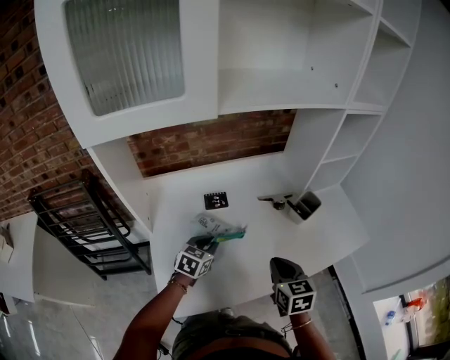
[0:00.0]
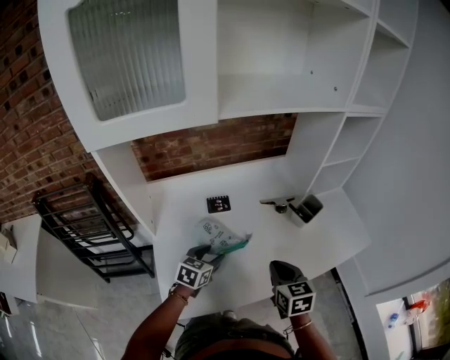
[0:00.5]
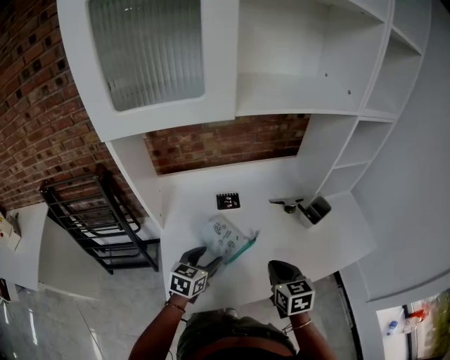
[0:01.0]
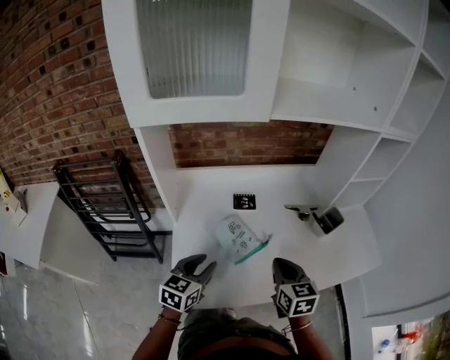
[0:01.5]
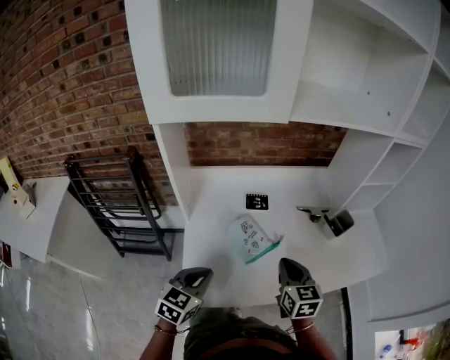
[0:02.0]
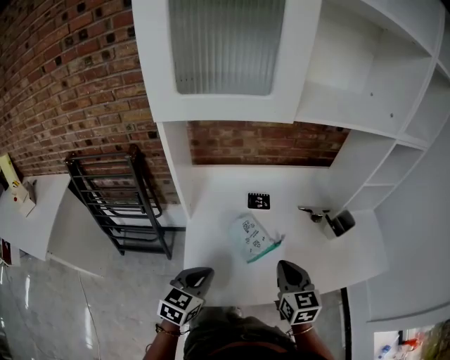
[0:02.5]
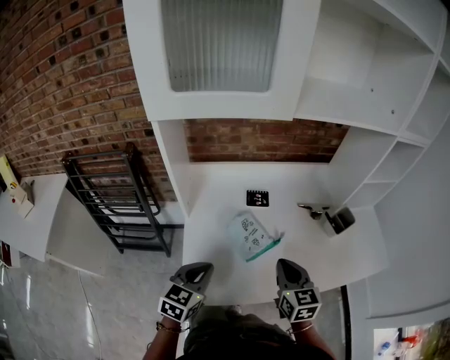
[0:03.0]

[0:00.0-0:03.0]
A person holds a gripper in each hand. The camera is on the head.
0:00.0 to 0:01.5: The right gripper shifts some 5 cm to the left, while the left gripper goes some 15 cm backward, upward and to the left.

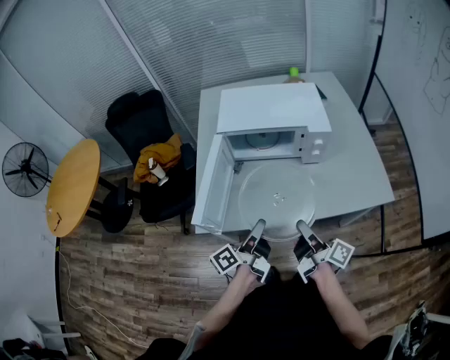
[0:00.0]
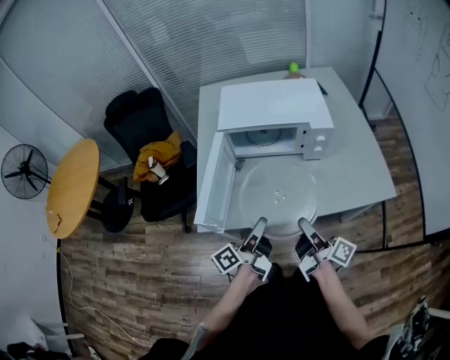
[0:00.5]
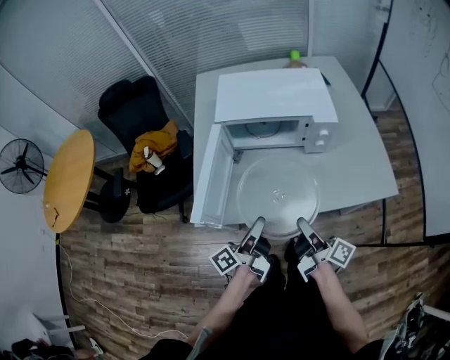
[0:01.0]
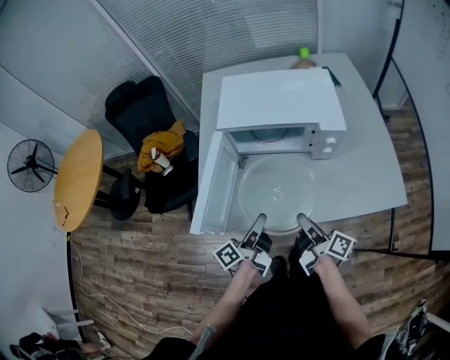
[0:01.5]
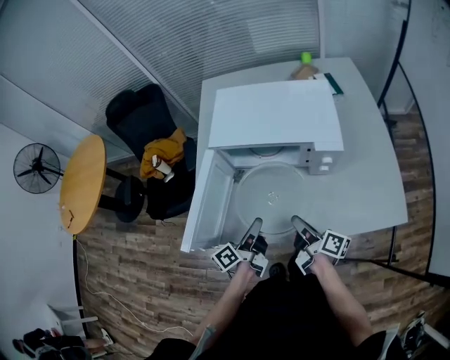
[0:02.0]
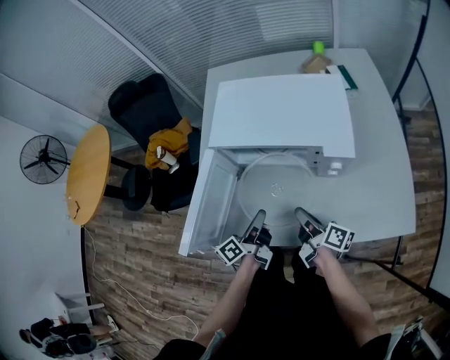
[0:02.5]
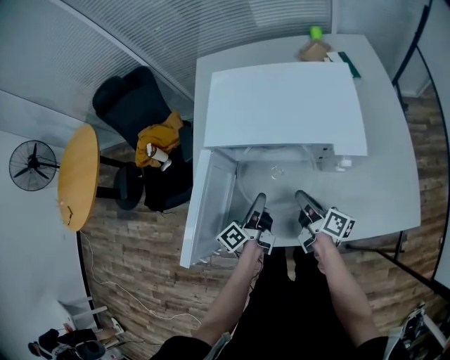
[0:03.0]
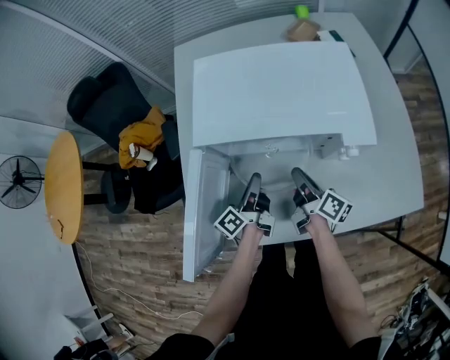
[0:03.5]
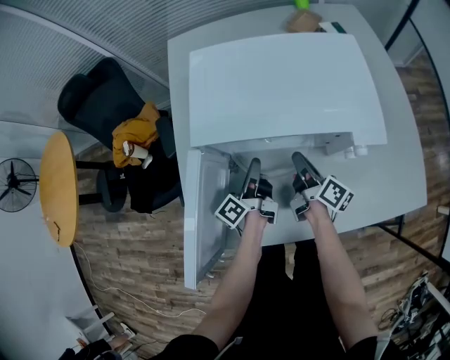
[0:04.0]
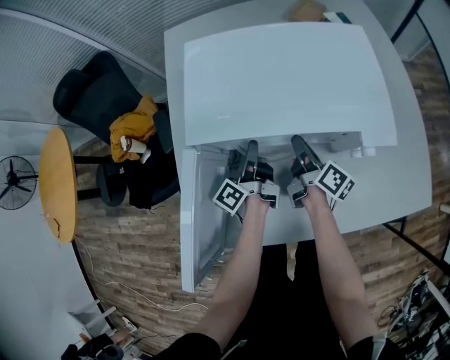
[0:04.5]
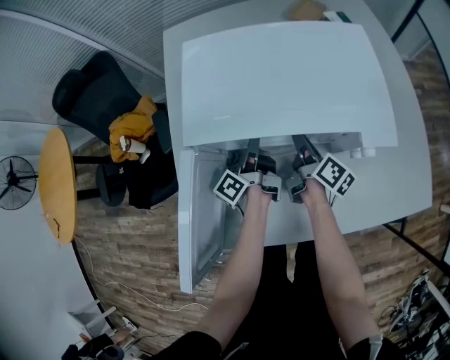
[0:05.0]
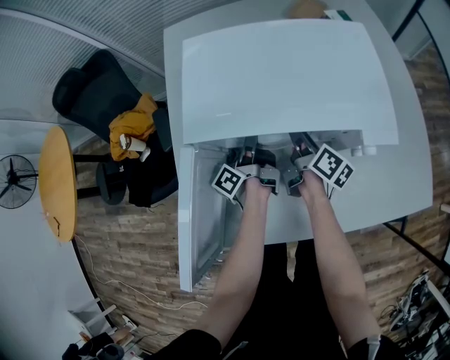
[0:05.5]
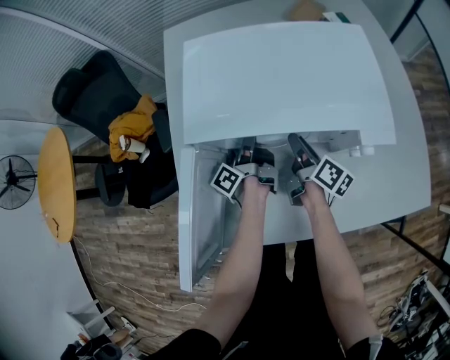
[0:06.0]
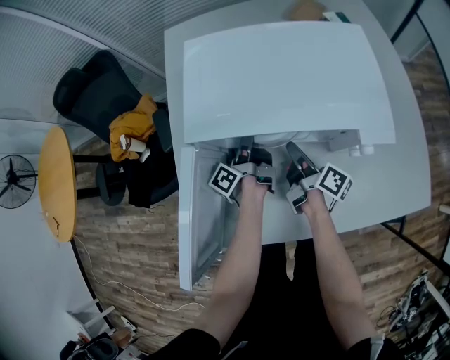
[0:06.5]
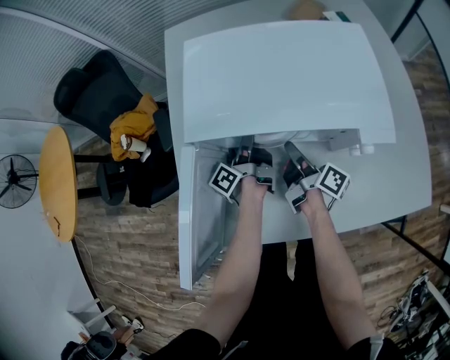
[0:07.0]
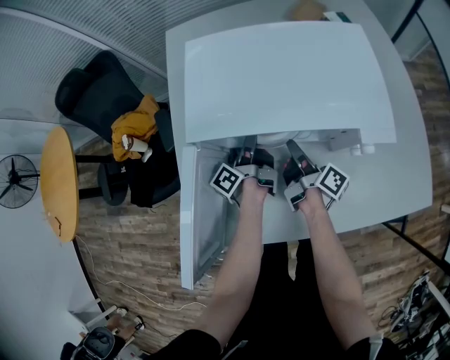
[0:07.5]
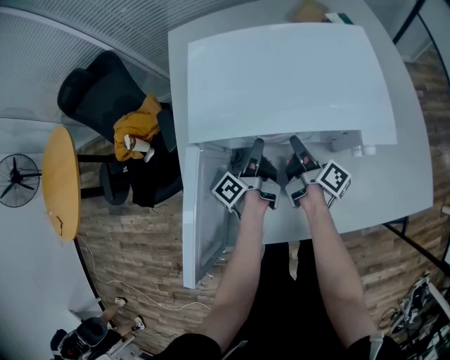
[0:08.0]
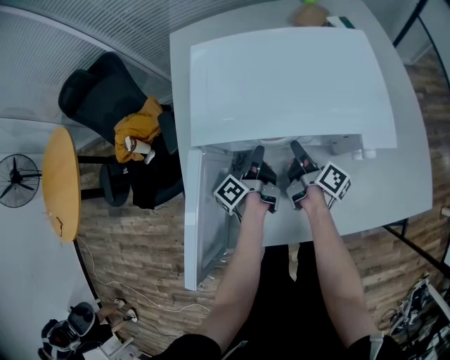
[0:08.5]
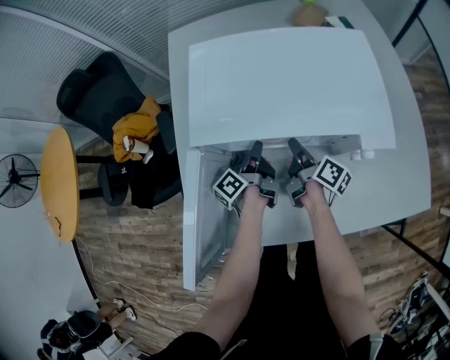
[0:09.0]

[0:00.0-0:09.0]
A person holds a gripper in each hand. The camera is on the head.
0:00.0 to 0:02.0: The right gripper moves approximately 15 cm.
0:02.0 to 0:04.5: The right gripper changes place by approximately 25 cm, and changes its angle by approximately 20 degrees.

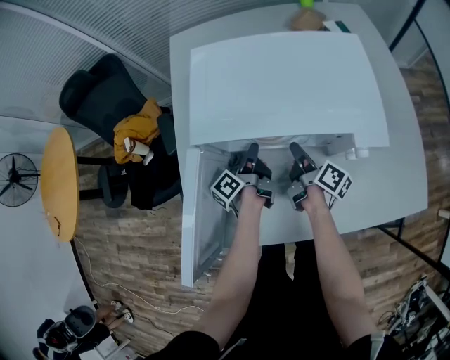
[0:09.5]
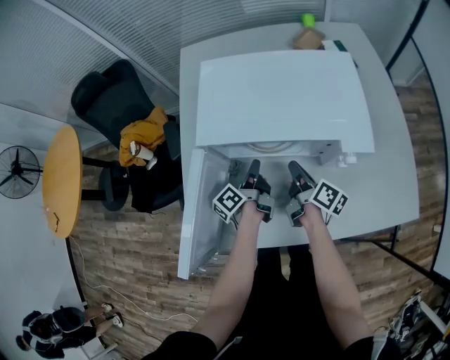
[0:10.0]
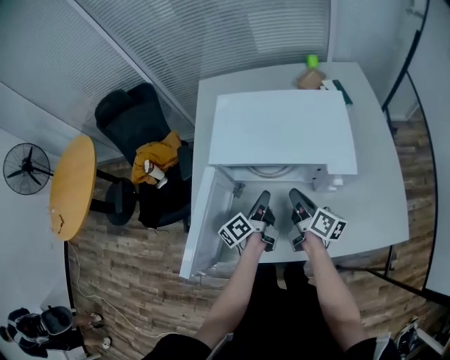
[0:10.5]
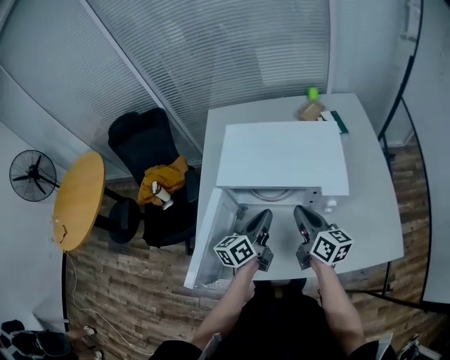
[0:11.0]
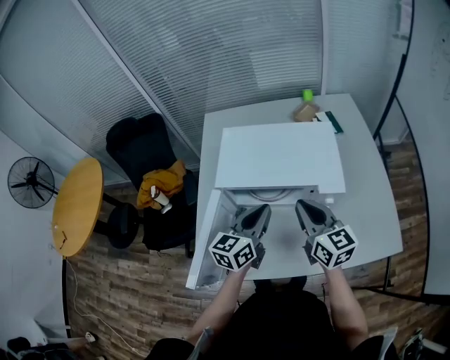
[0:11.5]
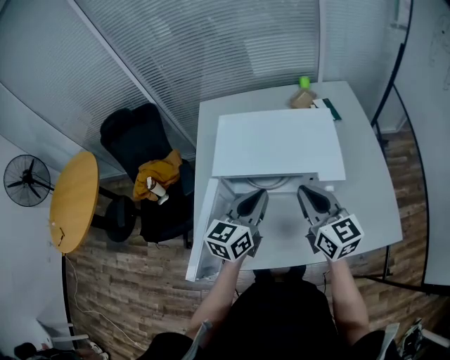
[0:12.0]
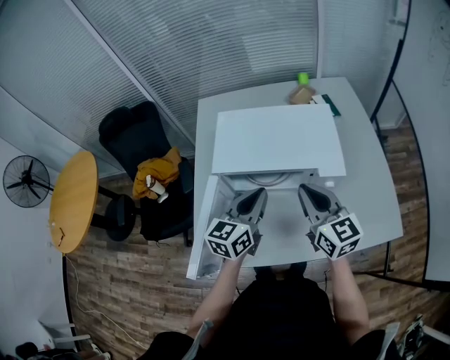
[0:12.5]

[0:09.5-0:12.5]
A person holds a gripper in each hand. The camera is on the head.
0:09.5 to 0:11.0: The right gripper heads upward, covering approximately 20 cm, and rotates some 40 degrees.
0:11.0 to 0:12.5: The right gripper travels upward by about 10 cm, and rotates approximately 30 degrees.

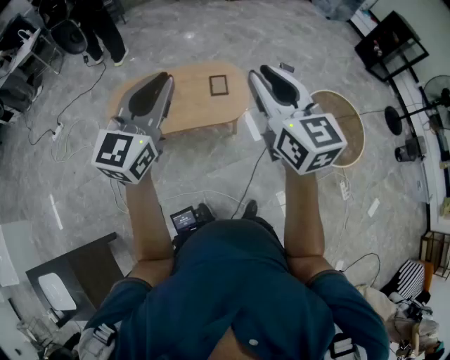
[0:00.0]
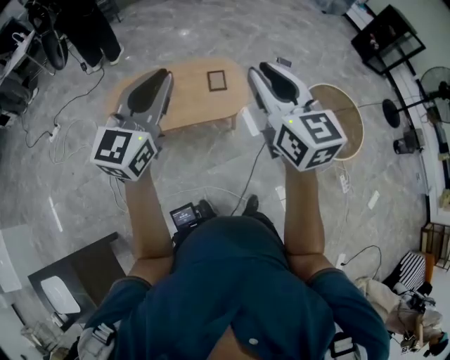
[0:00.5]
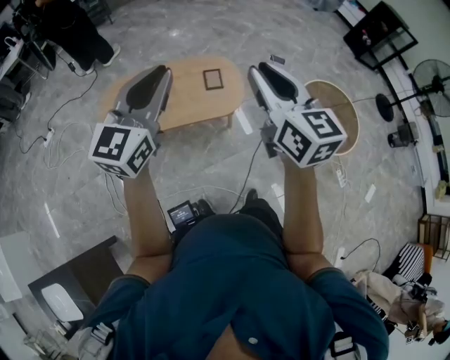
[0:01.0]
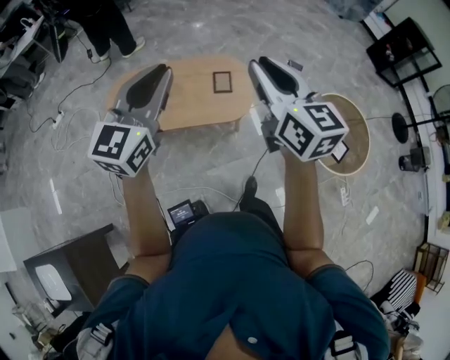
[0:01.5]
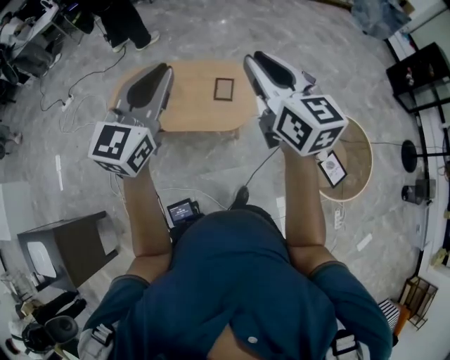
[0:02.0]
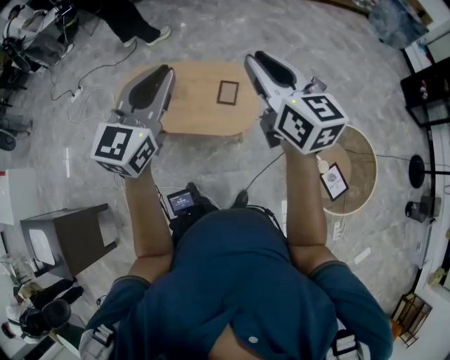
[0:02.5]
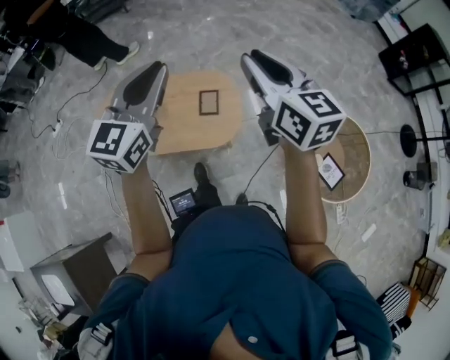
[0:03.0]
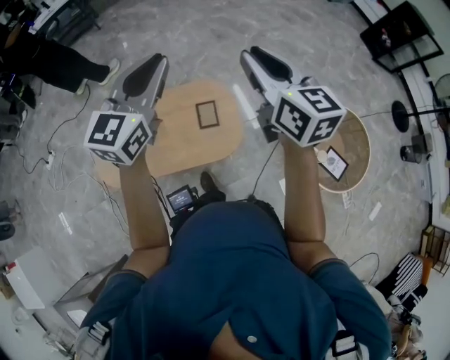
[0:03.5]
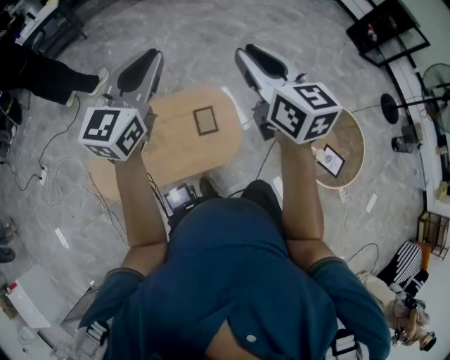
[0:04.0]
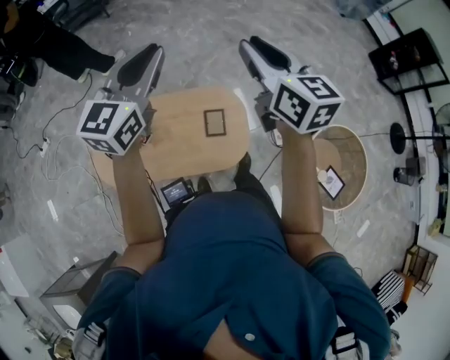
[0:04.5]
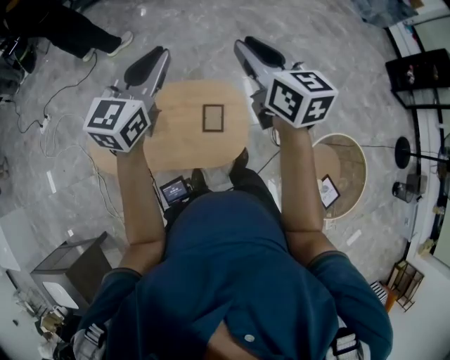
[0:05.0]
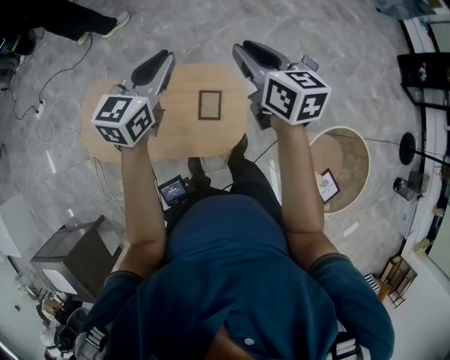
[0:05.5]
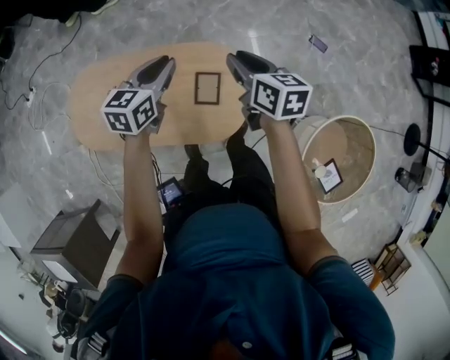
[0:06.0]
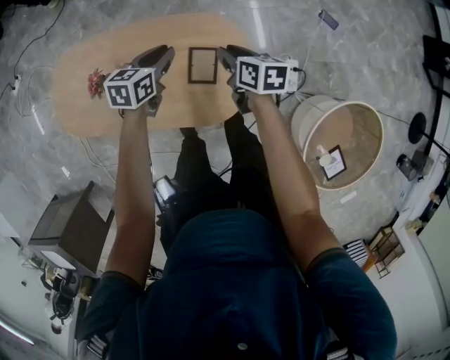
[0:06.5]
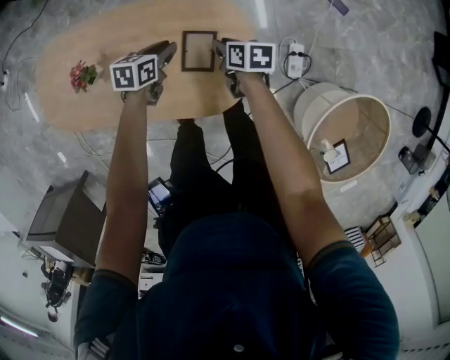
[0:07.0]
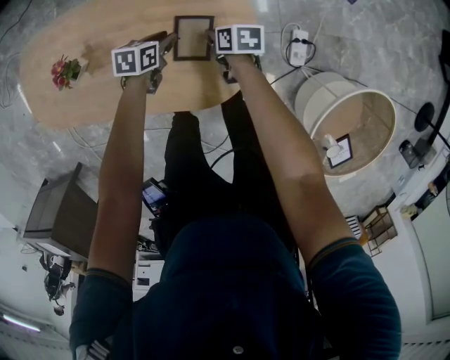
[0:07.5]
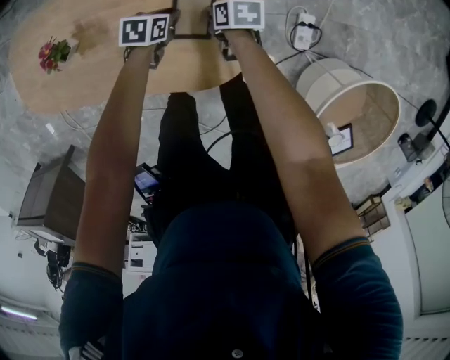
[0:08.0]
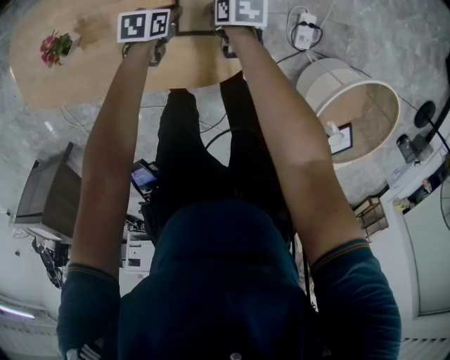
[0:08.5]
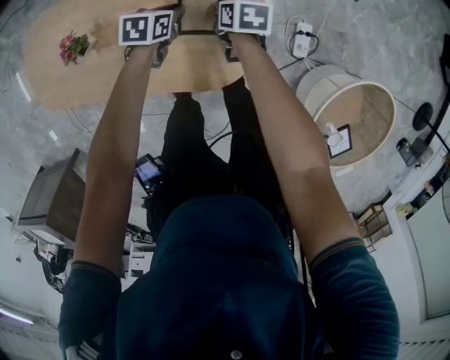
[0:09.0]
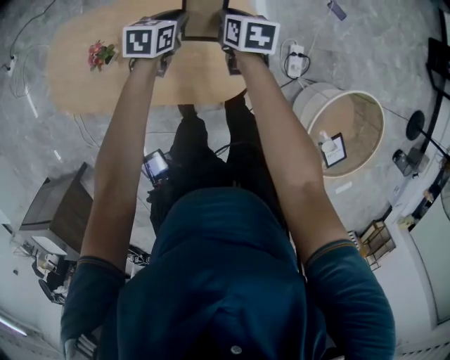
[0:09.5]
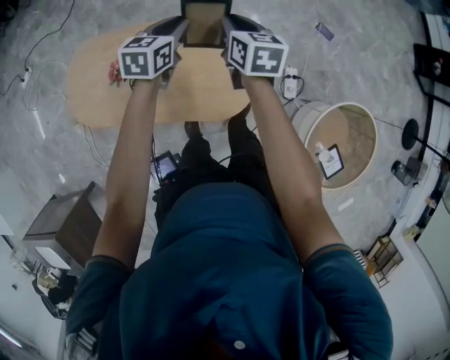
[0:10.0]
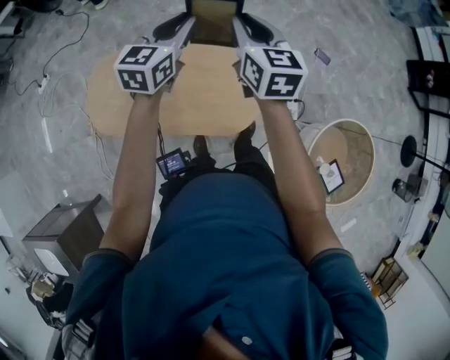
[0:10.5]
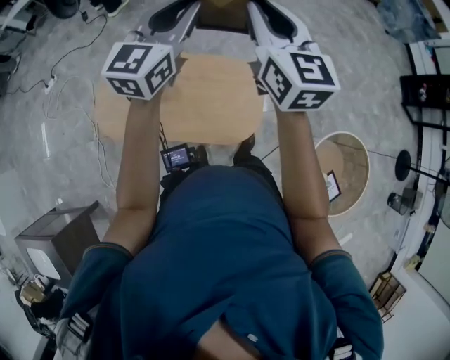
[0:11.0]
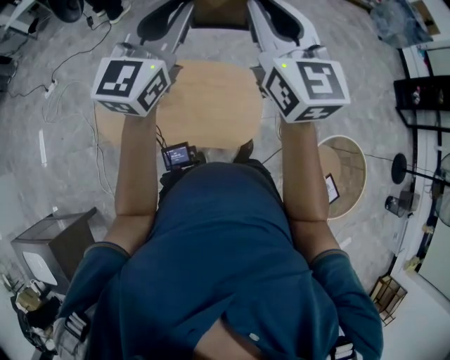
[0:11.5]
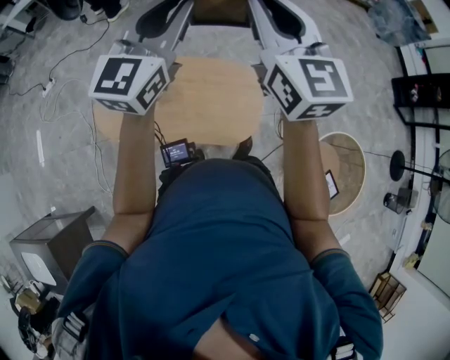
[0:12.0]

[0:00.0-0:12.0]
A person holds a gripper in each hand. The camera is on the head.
0:00.0 to 0:02.0: Both grippers travel together forward and to the right, roughly 20 cm.
0:02.0 to 0:04.0: The two grippers go some 30 cm forward.
0:04.0 to 0:06.0: The left gripper moves downward, about 35 cm, and rotates roughly 40 degrees, while the right gripper goes approximately 35 cm downward and forward, and changes its angle by approximately 40 degrees.
0:06.0 to 0:08.0: The two grippers go roughly 40 cm downward. The right gripper changes its angle by about 40 degrees. The left gripper changes its angle by approximately 40 degrees.
0:08.0 to 0:10.0: Both grippers move upward, approximately 40 cm. The right gripper swivels some 40 degrees. Meanwhile the left gripper changes its angle by about 30 degrees.
0:10.0 to 0:12.0: Both grippers travel together upward, roughly 40 cm. The right gripper tips its fingers upward by about 40 degrees. The left gripper tips its fingers upward by about 40 degrees.
